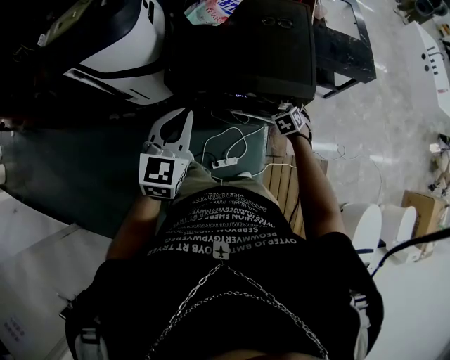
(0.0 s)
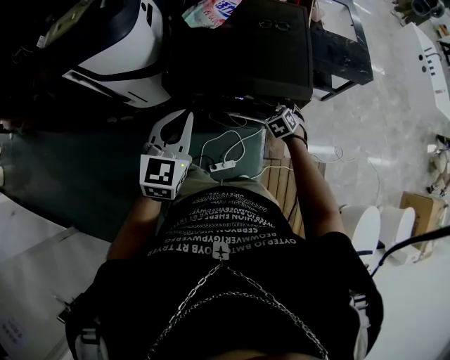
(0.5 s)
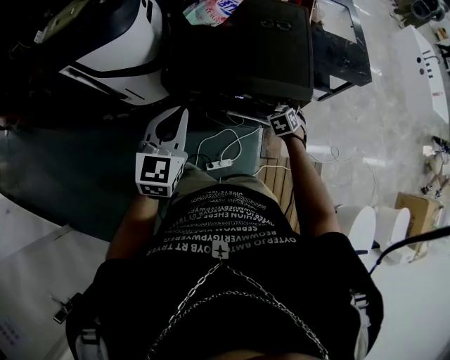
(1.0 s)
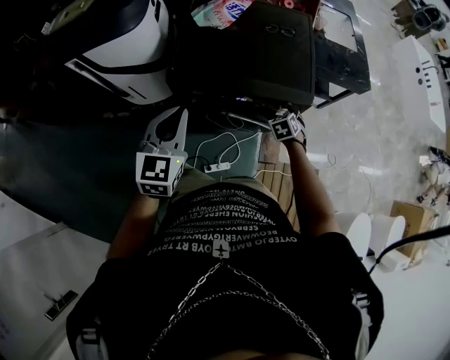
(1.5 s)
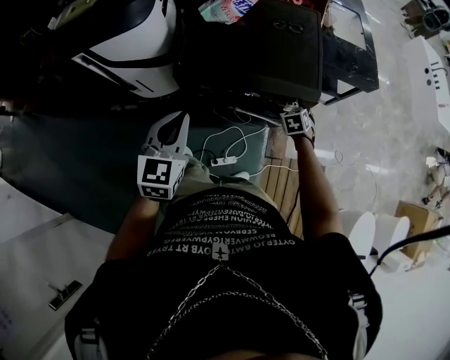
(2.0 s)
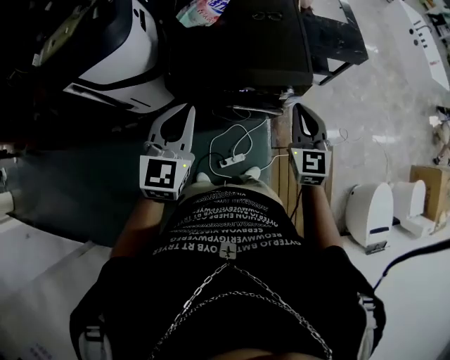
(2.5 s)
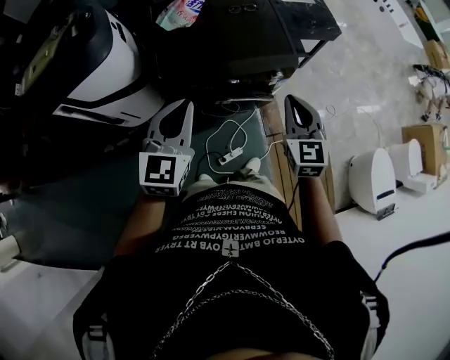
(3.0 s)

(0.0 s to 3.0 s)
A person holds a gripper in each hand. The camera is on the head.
0.0 s - 1.5 s: The grippers make only small movements.
1.5 s - 3.0 s: The right gripper goes approximately 35 cm upward and backward, angles its fingers upward, by roughly 40 degrees, and closes its fingers. Meanwhile the left gripper moves upward, some 5 cm, and rotates roughly 20 degrees.

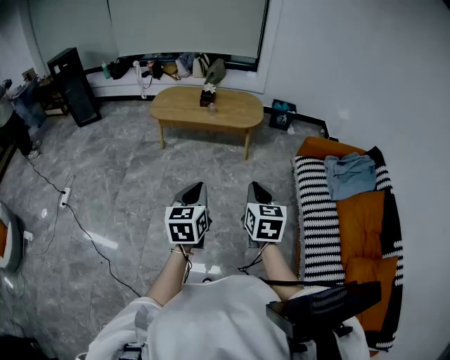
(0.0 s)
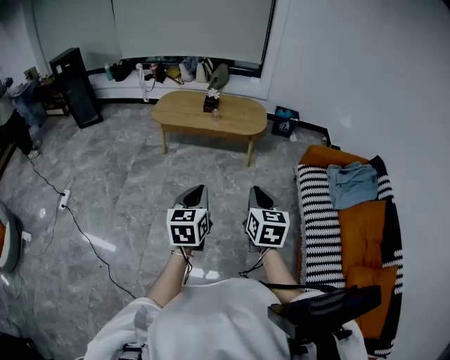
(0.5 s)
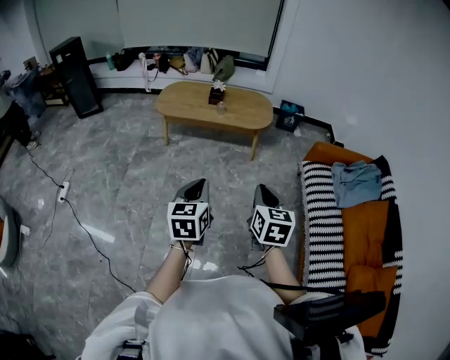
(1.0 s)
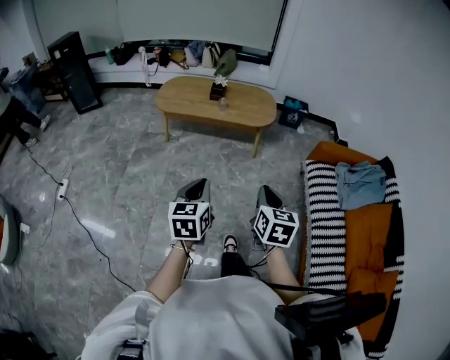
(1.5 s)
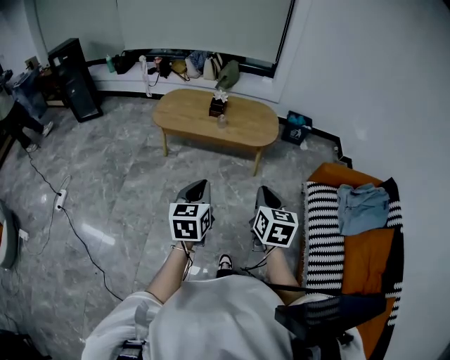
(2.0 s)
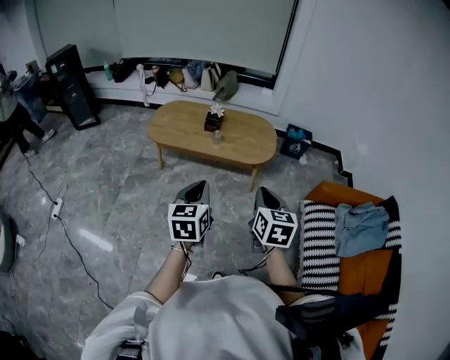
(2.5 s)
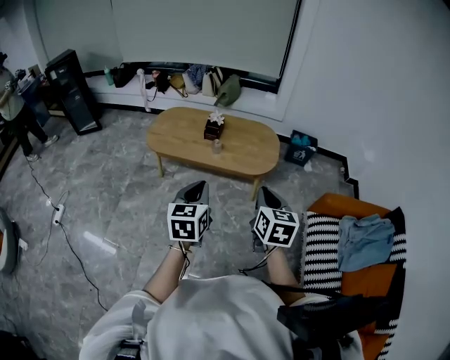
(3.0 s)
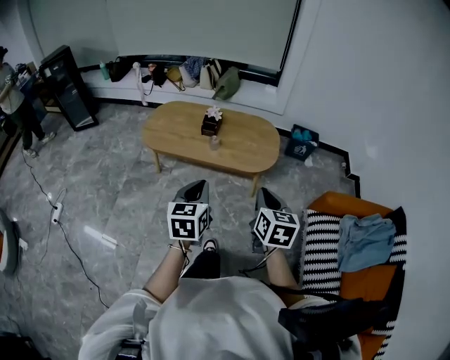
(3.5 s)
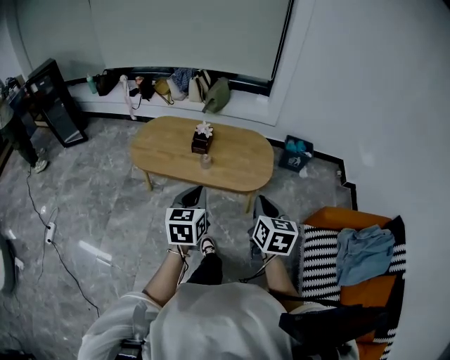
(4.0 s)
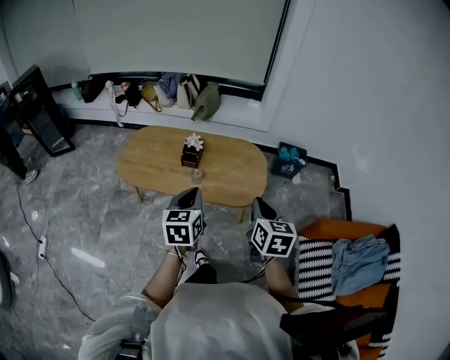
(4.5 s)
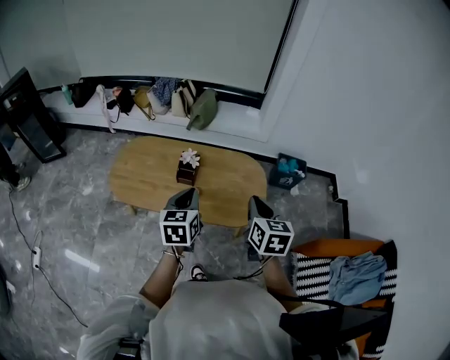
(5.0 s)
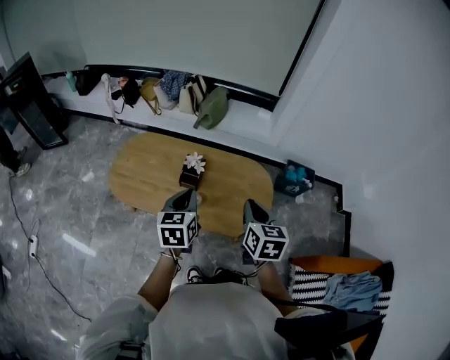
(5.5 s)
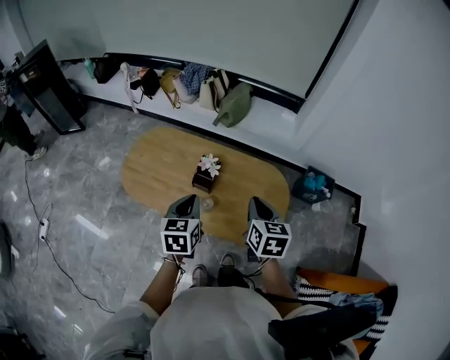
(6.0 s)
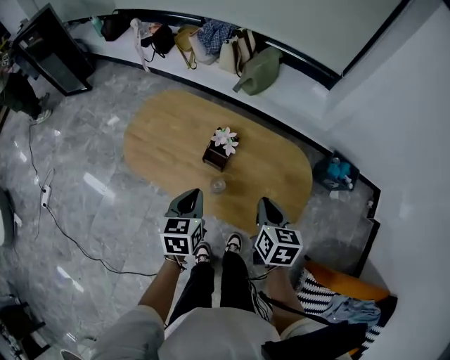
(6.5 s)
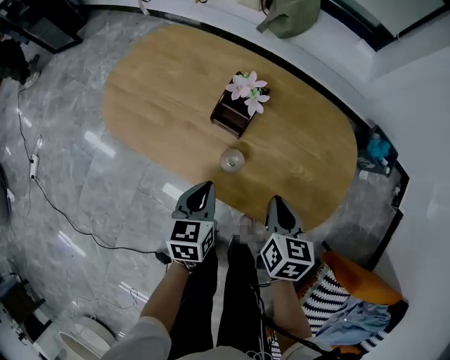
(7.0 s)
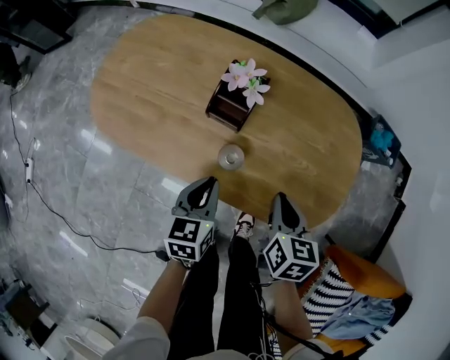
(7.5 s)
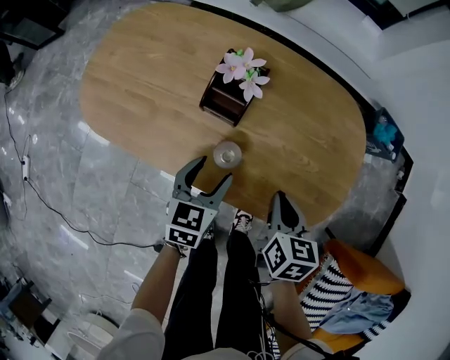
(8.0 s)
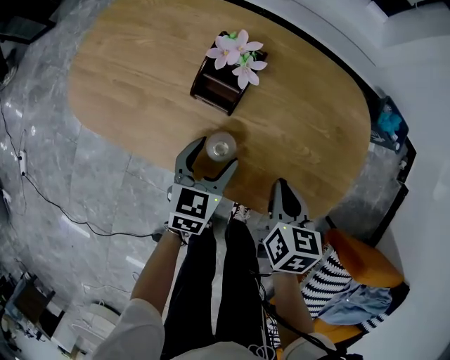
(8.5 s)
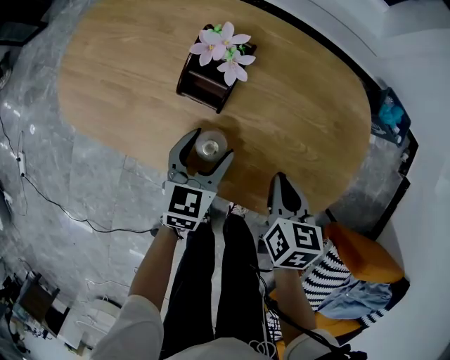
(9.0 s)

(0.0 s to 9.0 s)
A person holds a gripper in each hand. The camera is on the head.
0.0 s - 2.0 s: The two grippers go roughly 20 cm forward.
2.0 s - 4.5 s: The pair of grippers is taken forward, roughly 40 cm.
4.5 s - 7.0 s: The grippers both shift downward and forward by roughly 40 cm. The right gripper turns by some 20 degrees. Meanwhile the left gripper changes its angle by approximately 20 degrees.
7.0 s - 9.0 s: The left gripper shifts approximately 10 cm forward, downward and to the right, changes its angle by some 20 degrees, and opens its fingers, while the right gripper travels downward by approximately 5 cm.

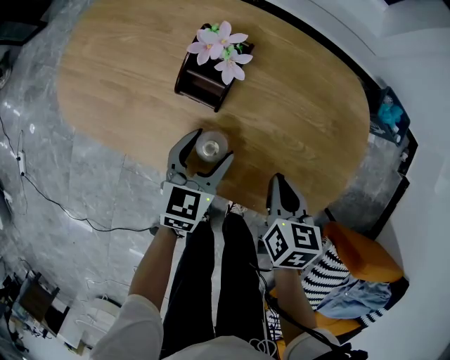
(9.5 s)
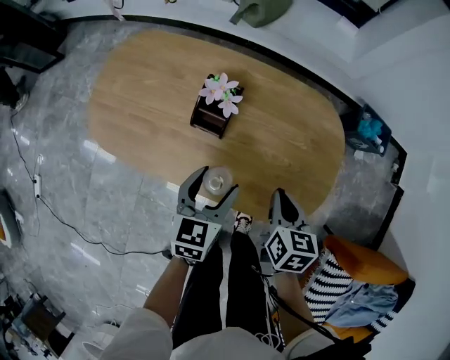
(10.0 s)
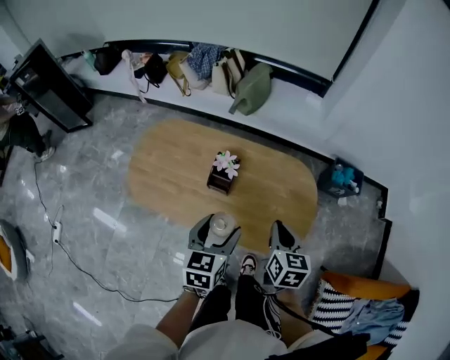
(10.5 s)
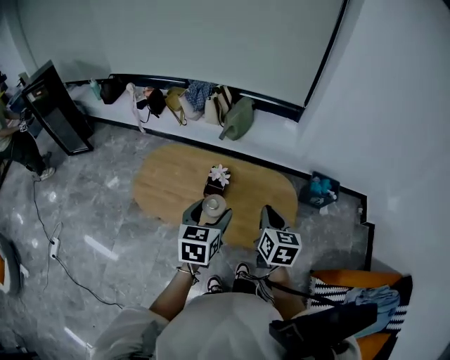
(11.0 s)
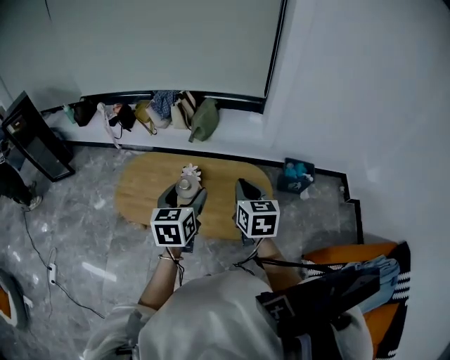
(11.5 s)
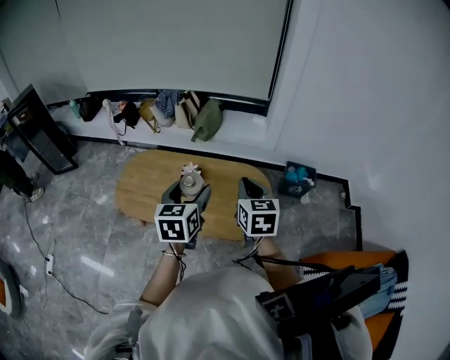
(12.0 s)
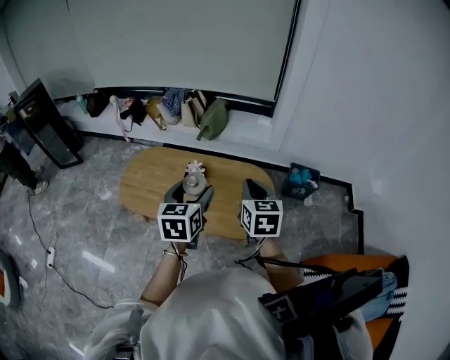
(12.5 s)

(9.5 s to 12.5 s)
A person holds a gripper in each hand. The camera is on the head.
9.5 s - 11.0 s: The grippers both shift upward by roughly 40 cm. The right gripper swivels roughly 30 degrees.
11.0 s - 12.5 s: The left gripper heads to the right and upward, covering about 10 cm; the right gripper shifts about 10 cm upward and to the right.

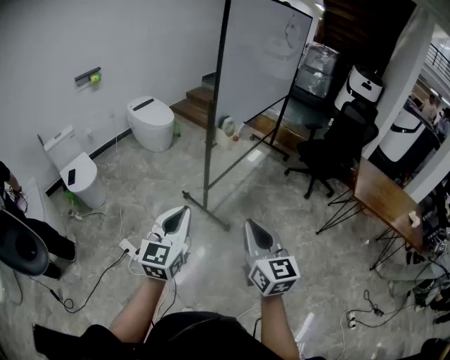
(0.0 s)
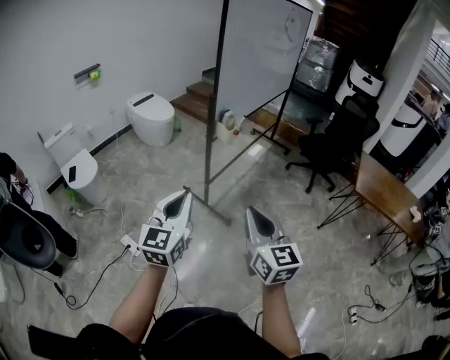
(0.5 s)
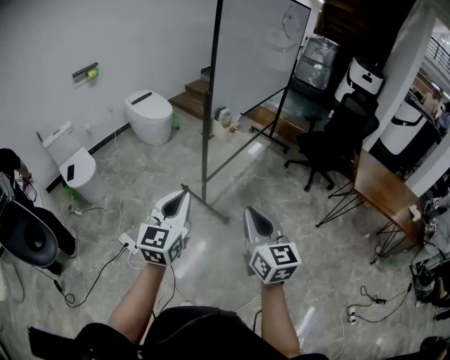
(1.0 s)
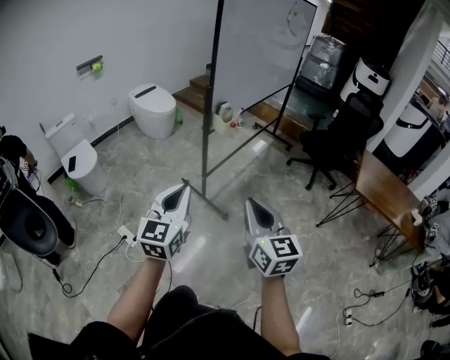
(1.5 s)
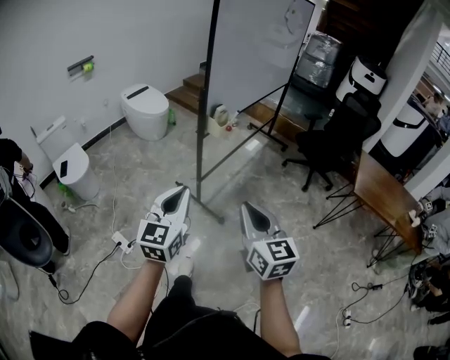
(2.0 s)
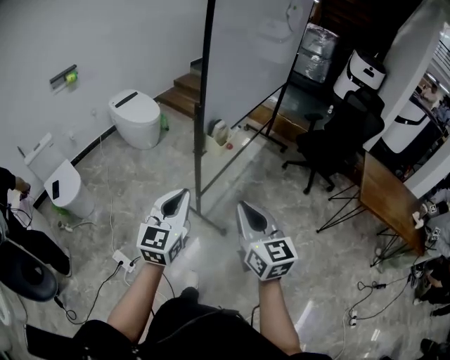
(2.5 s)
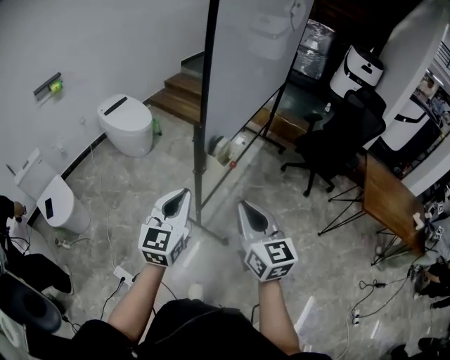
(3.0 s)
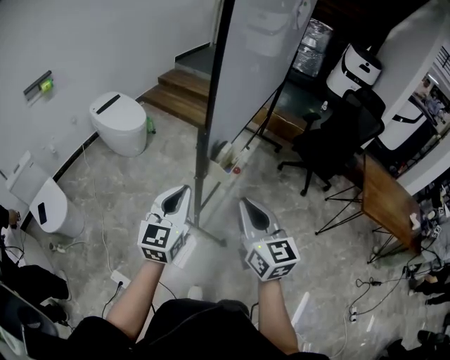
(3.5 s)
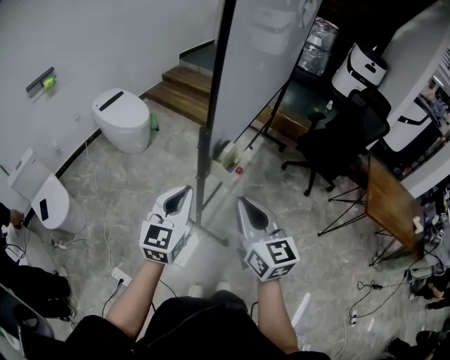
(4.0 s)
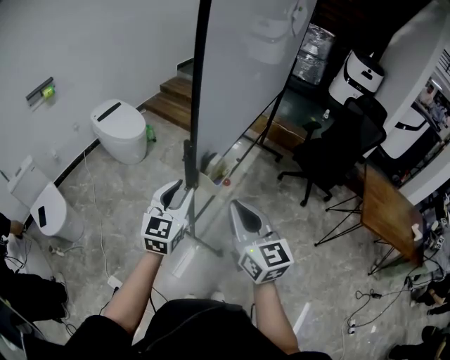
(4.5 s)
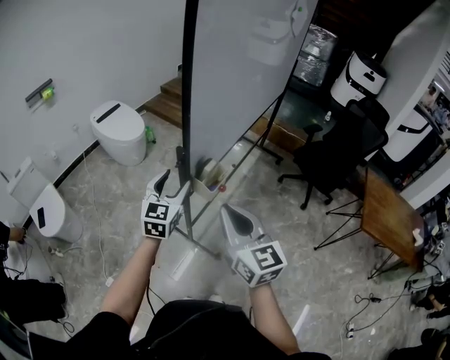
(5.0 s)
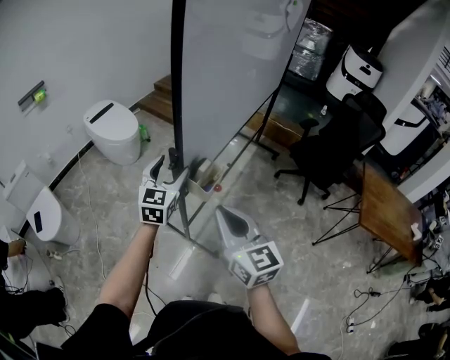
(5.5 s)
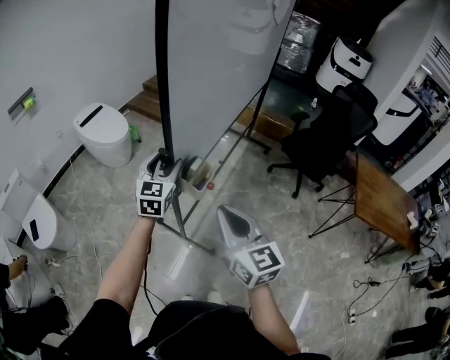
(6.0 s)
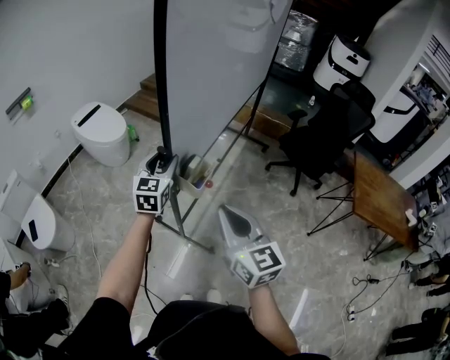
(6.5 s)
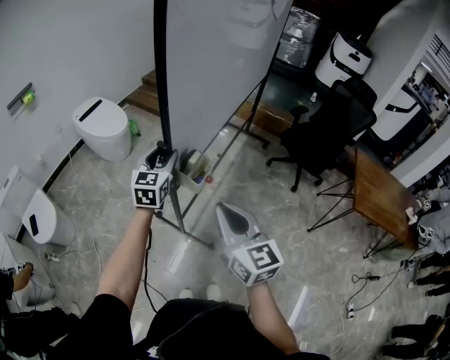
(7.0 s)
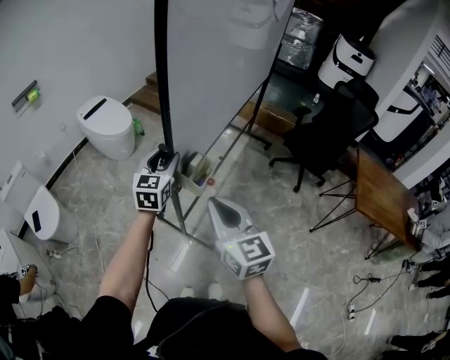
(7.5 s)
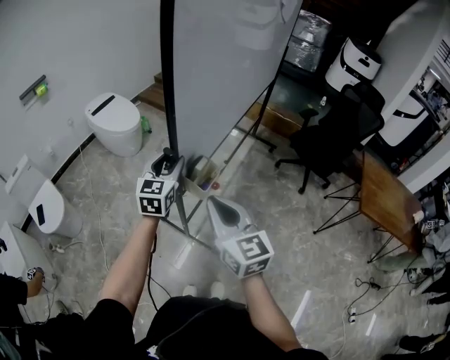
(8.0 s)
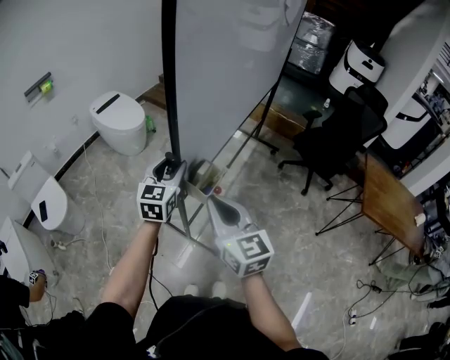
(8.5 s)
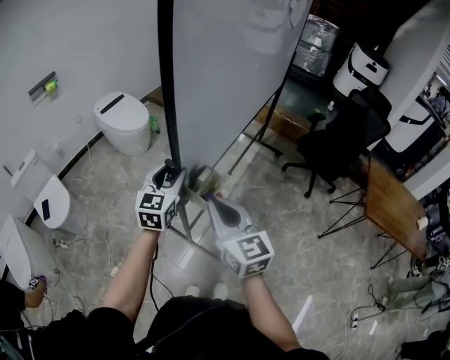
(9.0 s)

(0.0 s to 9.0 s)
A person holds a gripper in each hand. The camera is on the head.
0.0 s - 2.0 s: Both grippers move forward, some 5 cm.
2.0 s - 4.5 s: The two grippers go some 35 cm forward. The left gripper opens its fingers.
4.5 s - 7.0 s: The left gripper heads forward, covering some 15 cm, and opens, then closes once more.
7.0 s - 9.0 s: The right gripper shifts about 5 cm to the left, while the left gripper is displaced backward by some 10 cm.

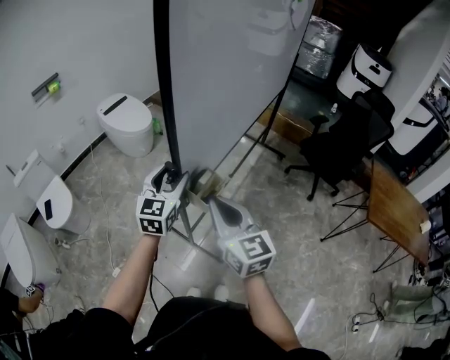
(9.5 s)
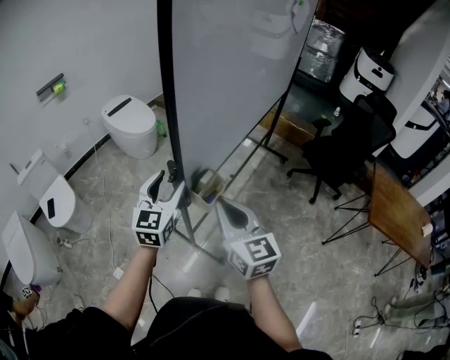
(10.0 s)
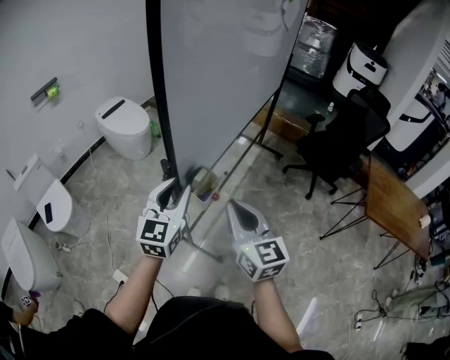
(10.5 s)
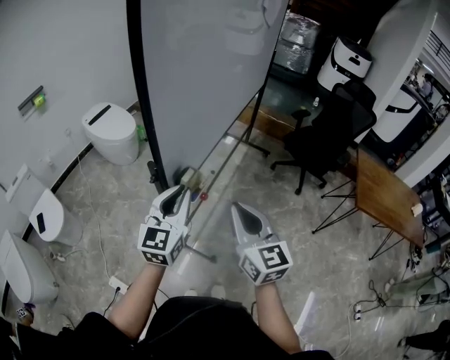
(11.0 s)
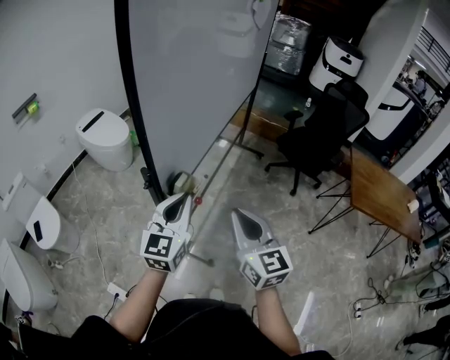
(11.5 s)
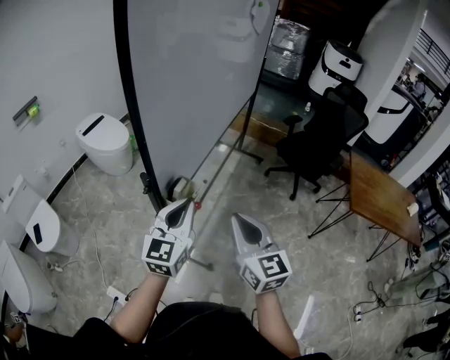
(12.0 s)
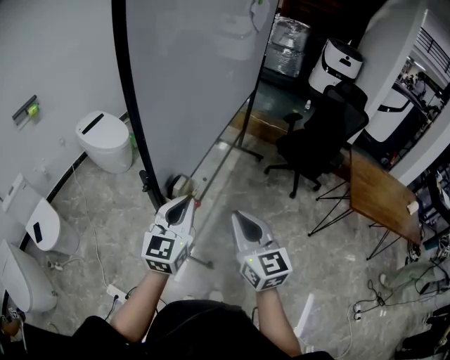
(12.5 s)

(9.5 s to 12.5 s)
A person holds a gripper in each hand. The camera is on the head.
9.5 s - 11.0 s: The right gripper shifts approximately 10 cm to the right. The left gripper shifts about 10 cm backward and to the right, and closes.
11.0 s - 12.5 s: There are only small adjustments of the grippers.
